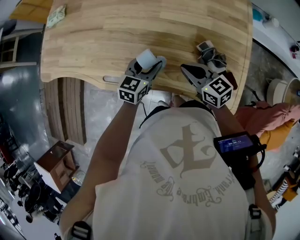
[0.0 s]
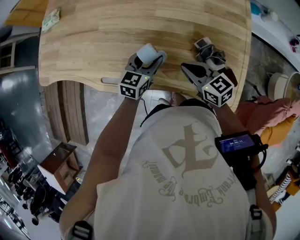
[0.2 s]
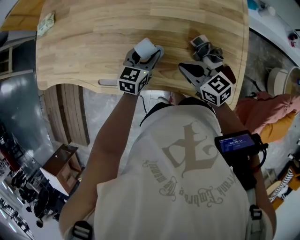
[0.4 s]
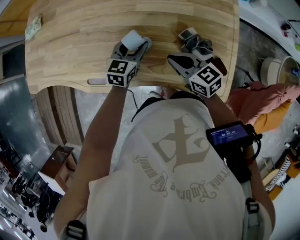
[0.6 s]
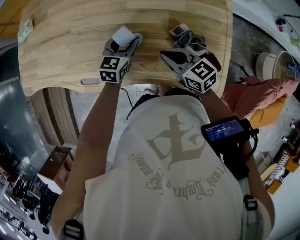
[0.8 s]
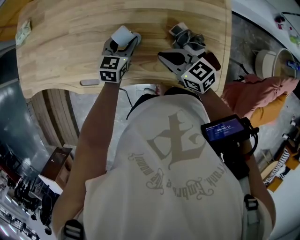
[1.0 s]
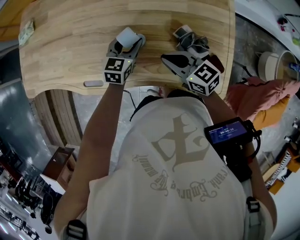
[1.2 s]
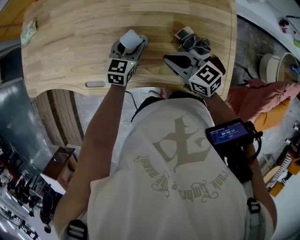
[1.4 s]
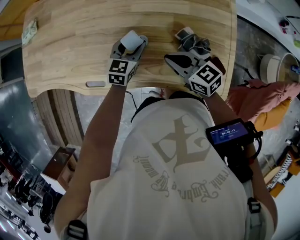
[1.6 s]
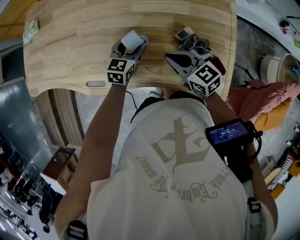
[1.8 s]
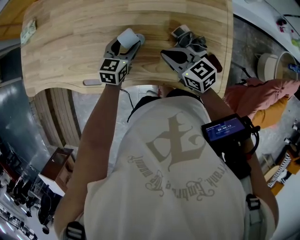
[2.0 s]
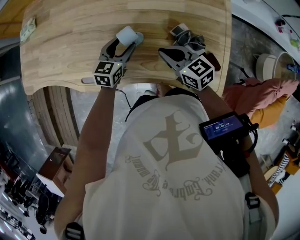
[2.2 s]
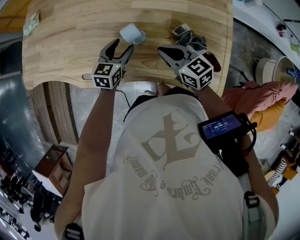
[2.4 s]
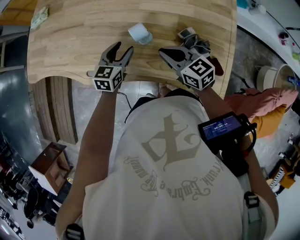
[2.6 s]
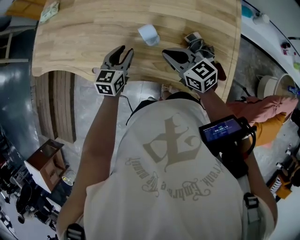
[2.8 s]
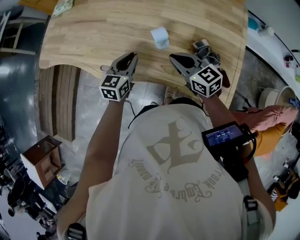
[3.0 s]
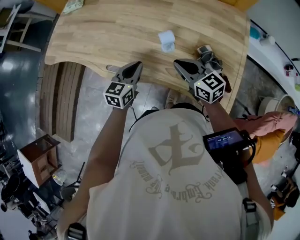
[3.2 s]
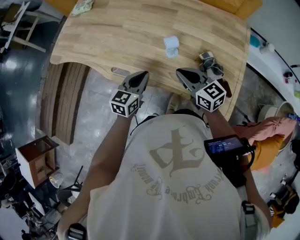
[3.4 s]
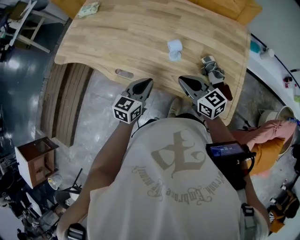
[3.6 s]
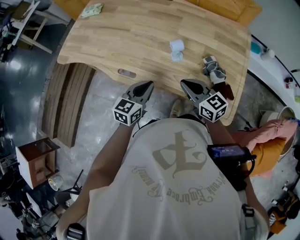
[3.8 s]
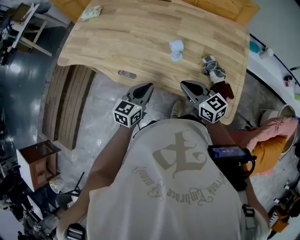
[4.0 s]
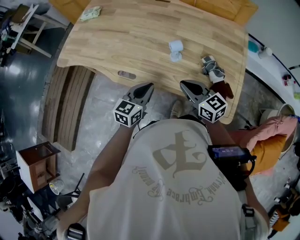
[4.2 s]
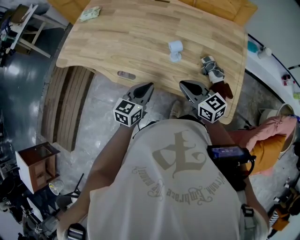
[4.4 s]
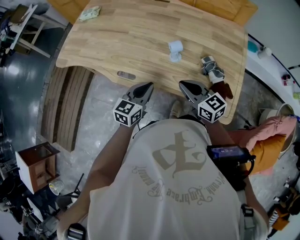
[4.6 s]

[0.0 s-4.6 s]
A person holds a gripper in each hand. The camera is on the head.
0.0 to 1.6 s: The left gripper moves forward, some 5 cm.
1.6 to 3.0 s: The left gripper shifts about 15 cm to the left, backward and upward, and closes its fingers.
3.0 to 4.6 s: The right gripper shifts some 10 cm backward; the left gripper heads backward and upward, covering approximately 15 cm.

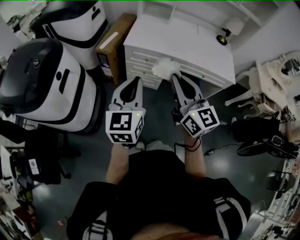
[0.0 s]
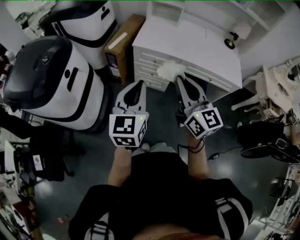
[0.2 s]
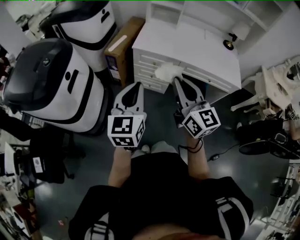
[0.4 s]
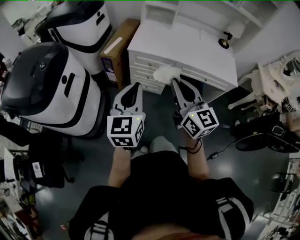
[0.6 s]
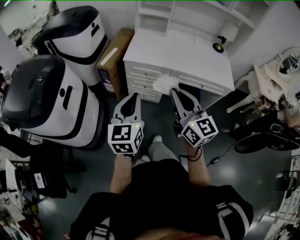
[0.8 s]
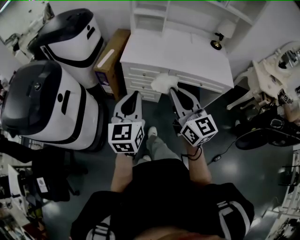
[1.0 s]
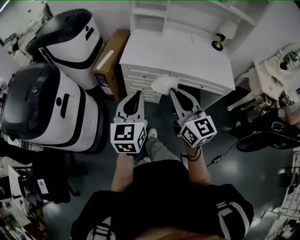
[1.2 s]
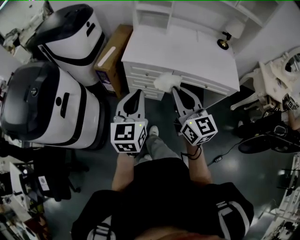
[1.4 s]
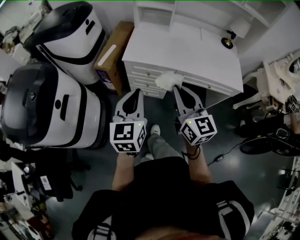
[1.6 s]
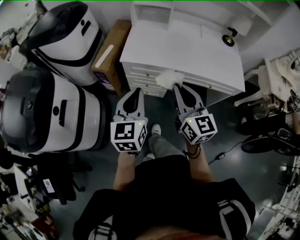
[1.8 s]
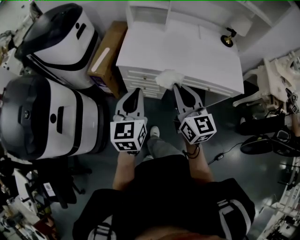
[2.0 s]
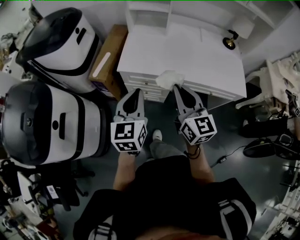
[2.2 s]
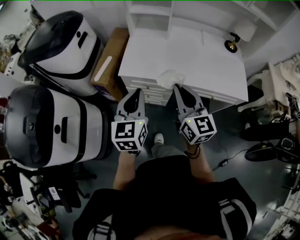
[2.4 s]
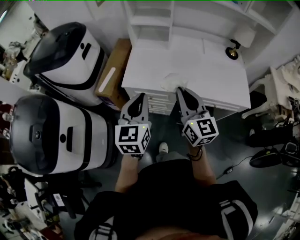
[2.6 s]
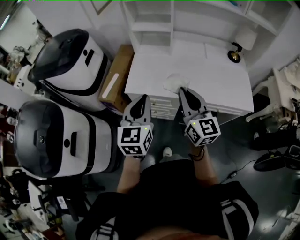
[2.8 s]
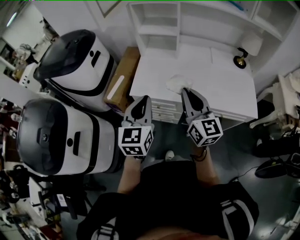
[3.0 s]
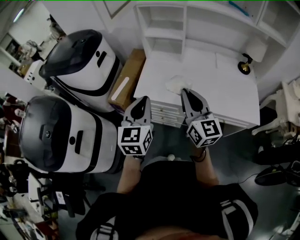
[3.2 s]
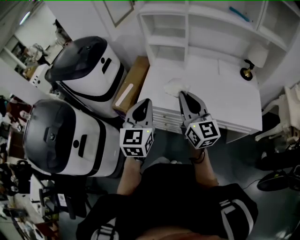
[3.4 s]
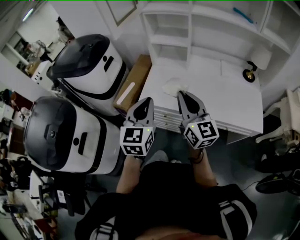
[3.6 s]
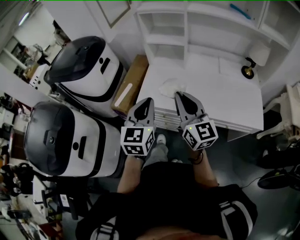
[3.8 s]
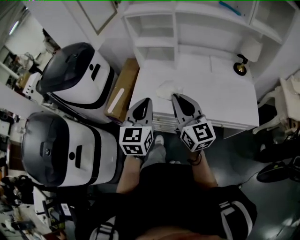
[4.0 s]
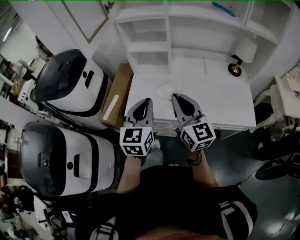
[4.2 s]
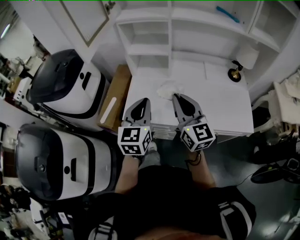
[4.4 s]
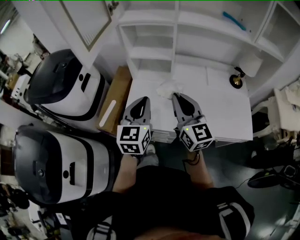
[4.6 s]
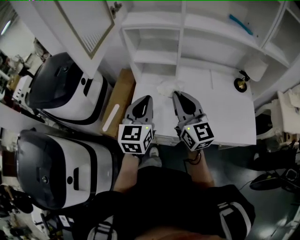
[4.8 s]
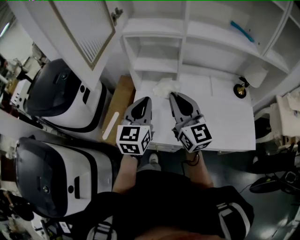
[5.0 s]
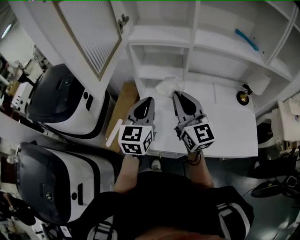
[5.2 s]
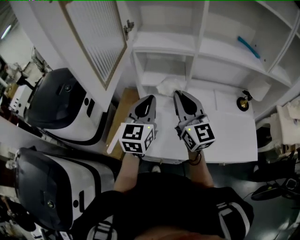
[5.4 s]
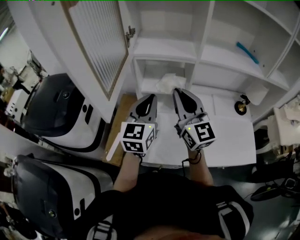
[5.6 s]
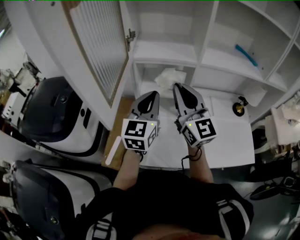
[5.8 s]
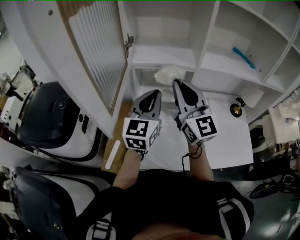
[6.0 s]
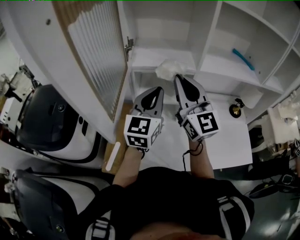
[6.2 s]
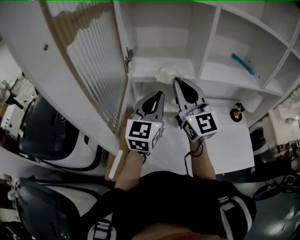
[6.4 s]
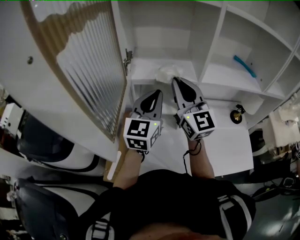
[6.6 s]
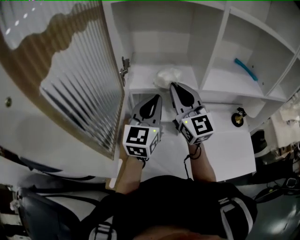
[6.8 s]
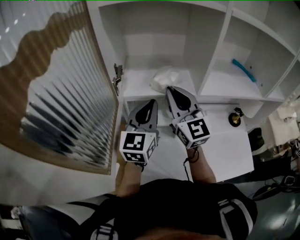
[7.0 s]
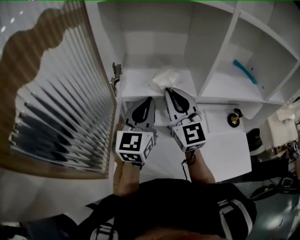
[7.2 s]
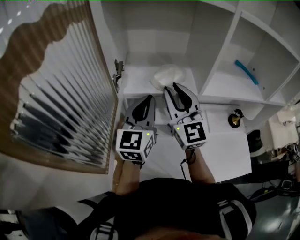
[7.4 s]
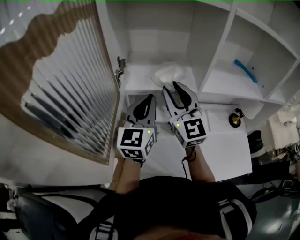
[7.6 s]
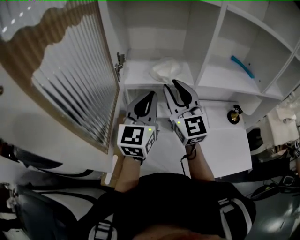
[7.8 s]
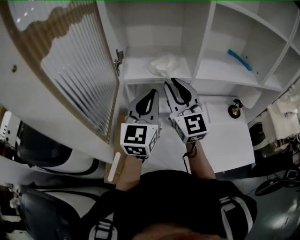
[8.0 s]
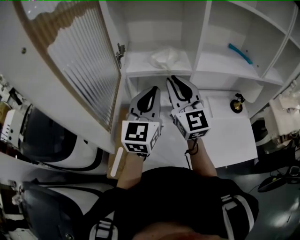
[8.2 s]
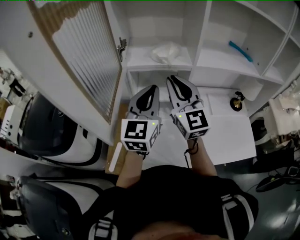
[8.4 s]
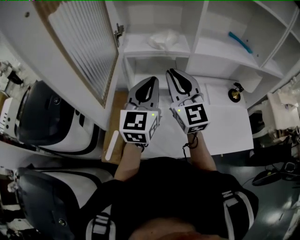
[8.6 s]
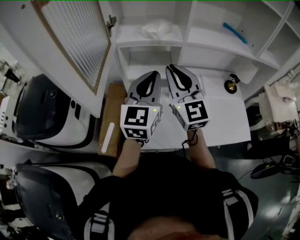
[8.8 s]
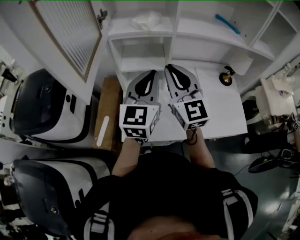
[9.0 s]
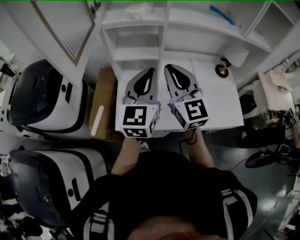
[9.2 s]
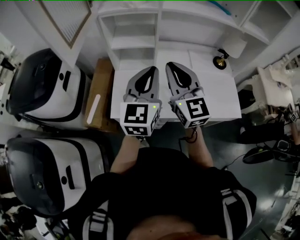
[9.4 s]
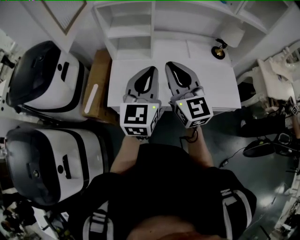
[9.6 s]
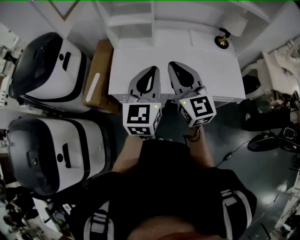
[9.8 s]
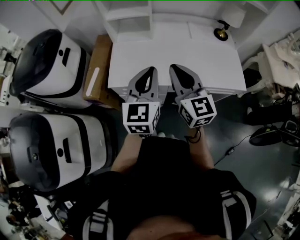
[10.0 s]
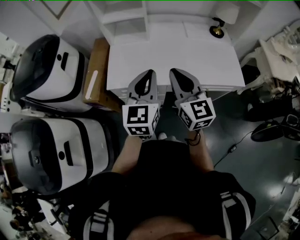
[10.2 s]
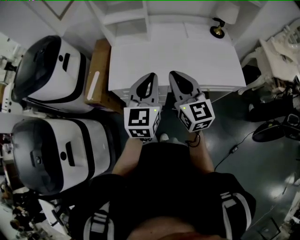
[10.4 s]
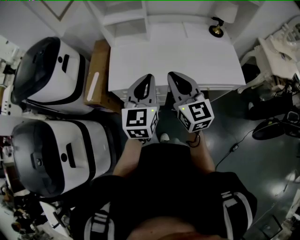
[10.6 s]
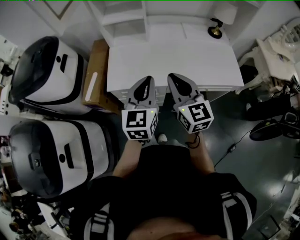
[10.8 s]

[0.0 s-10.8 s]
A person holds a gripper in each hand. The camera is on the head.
0.0 to 1.6 s: The two grippers go roughly 10 cm forward.
1.6 to 3.0 s: The grippers both shift forward by approximately 20 cm.
3.0 to 4.6 s: Both grippers travel together forward, about 15 cm.
4.6 to 6.2 s: The right gripper travels forward, upward and to the left by roughly 30 cm, and changes its angle by about 20 degrees, while the left gripper heads forward and upward, covering about 30 cm.
6.2 to 7.8 s: Both grippers move forward, approximately 5 cm. The right gripper opens.
7.8 to 9.2 s: The two grippers go about 25 cm backward and to the right. The right gripper closes up.
9.2 to 10.8 s: Both grippers move backward and downward, some 25 cm.

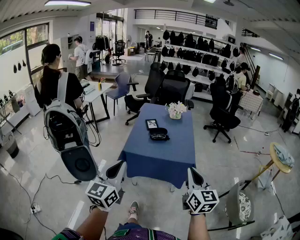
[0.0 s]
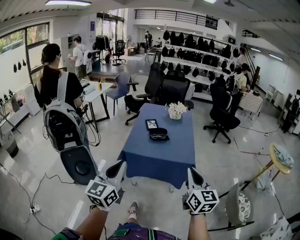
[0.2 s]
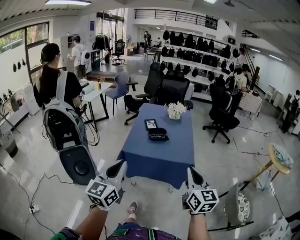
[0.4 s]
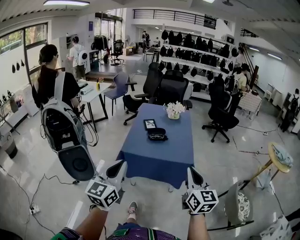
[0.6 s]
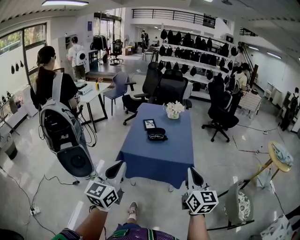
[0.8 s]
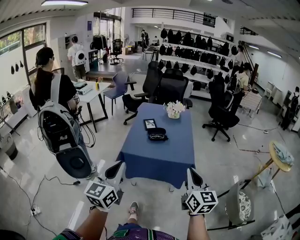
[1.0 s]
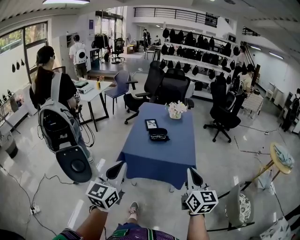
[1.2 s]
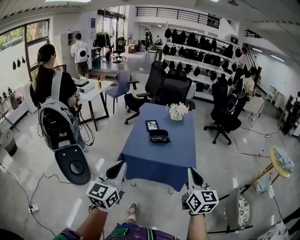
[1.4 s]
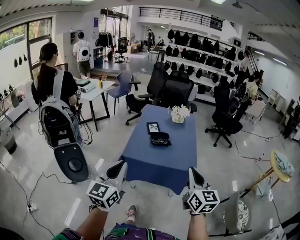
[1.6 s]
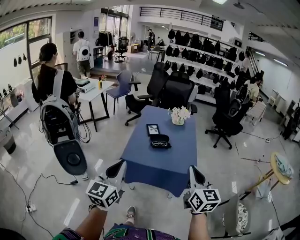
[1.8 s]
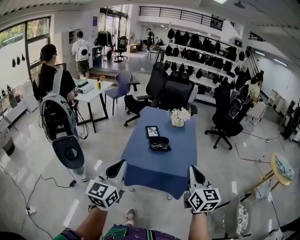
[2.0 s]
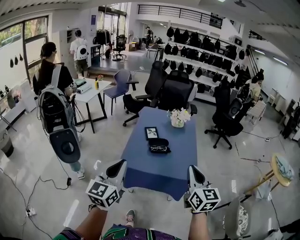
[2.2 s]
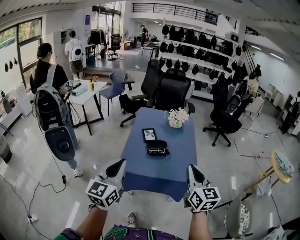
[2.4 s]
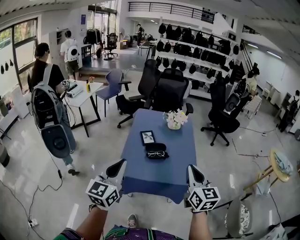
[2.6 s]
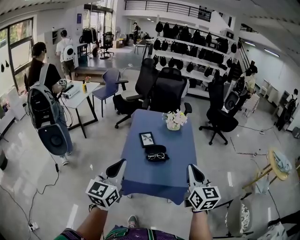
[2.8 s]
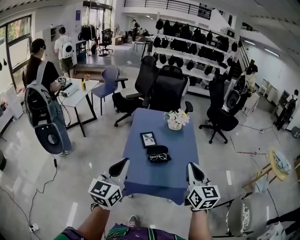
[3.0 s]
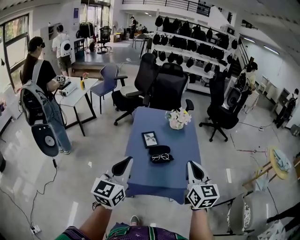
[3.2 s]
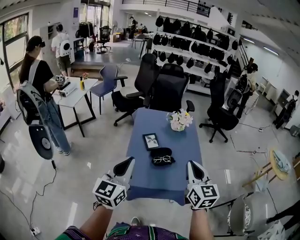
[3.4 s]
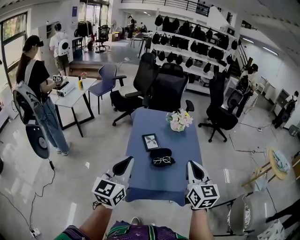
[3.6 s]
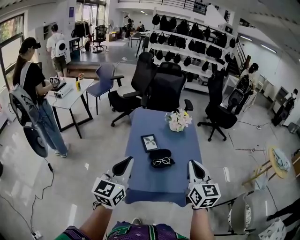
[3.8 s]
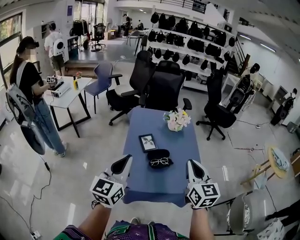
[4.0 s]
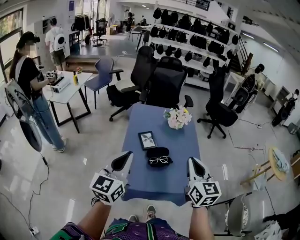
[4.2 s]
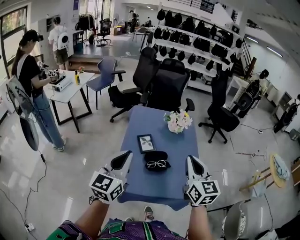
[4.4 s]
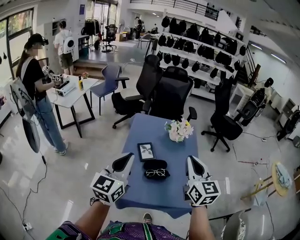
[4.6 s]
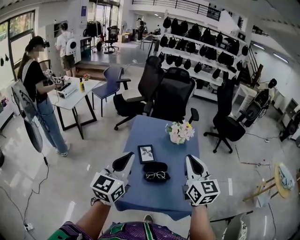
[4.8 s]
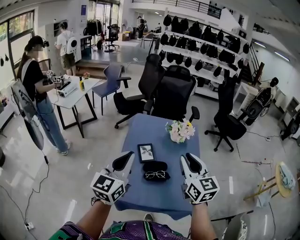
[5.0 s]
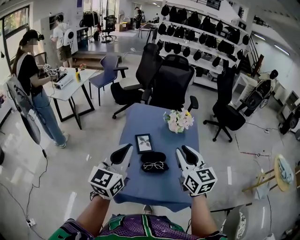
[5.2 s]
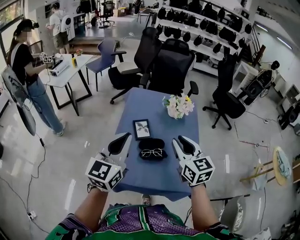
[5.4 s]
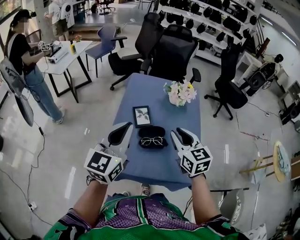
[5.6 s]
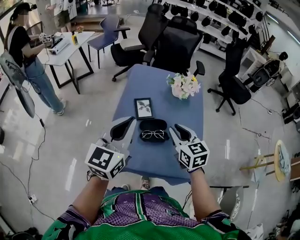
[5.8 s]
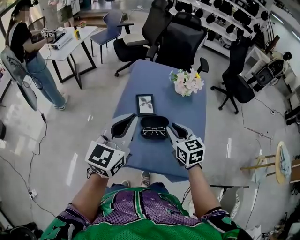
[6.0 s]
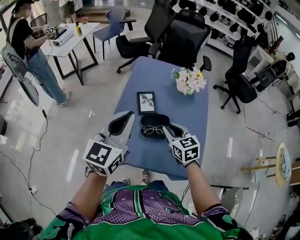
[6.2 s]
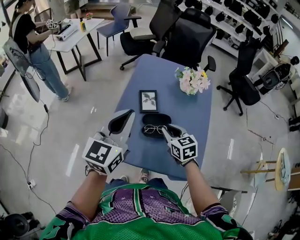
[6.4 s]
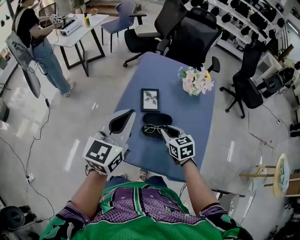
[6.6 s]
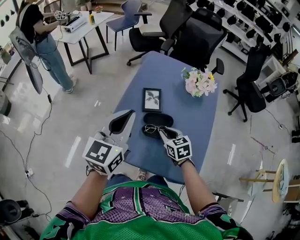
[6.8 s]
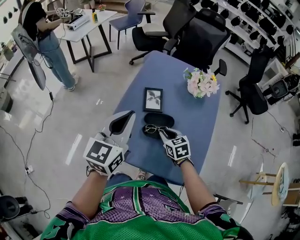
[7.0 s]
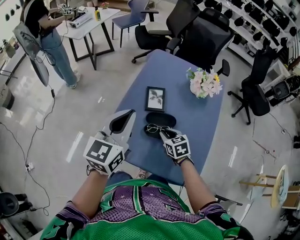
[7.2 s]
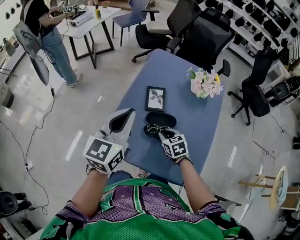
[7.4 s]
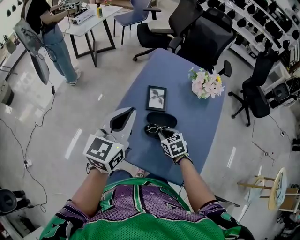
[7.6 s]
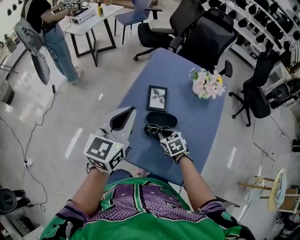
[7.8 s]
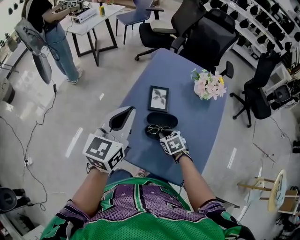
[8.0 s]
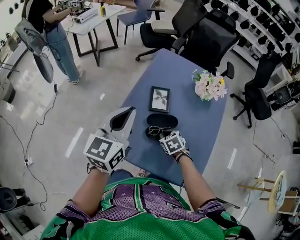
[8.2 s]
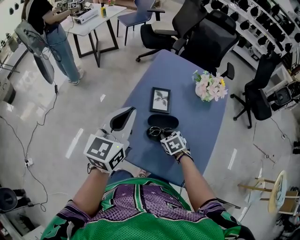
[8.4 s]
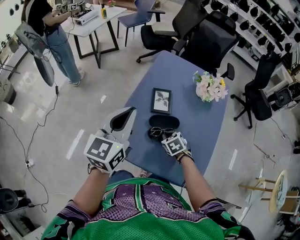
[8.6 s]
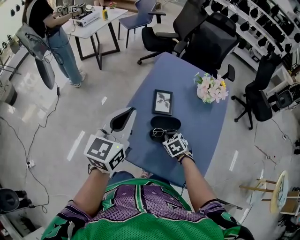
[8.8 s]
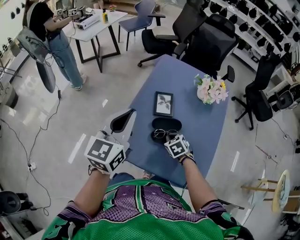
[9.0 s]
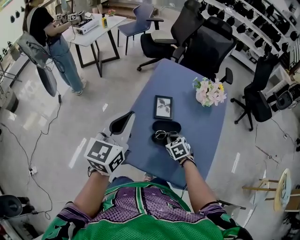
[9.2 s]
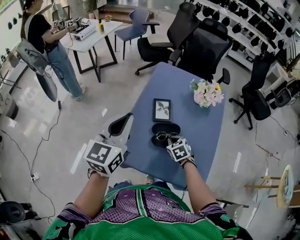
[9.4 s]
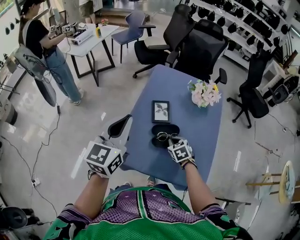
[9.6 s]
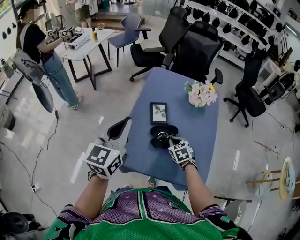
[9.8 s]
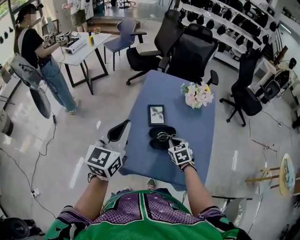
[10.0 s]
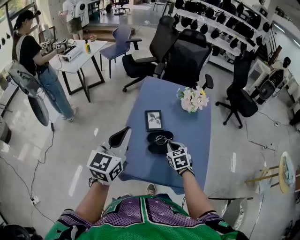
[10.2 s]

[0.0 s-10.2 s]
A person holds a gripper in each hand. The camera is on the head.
0.0 to 1.4 s: The grippers move only a little.
1.4 to 3.0 s: Both grippers move forward, about 25 cm.
3.0 to 4.4 s: Both grippers move forward, about 15 cm.
4.4 to 5.8 s: The left gripper travels to the right and forward by approximately 10 cm, while the right gripper shifts about 20 cm downward and forward, and rotates approximately 30 degrees.
5.8 to 7.2 s: The right gripper shifts approximately 20 cm downward, and rotates roughly 30 degrees; the left gripper heads downward, covering approximately 5 cm.
7.2 to 8.8 s: The right gripper rotates about 20 degrees.
8.8 to 10.2 s: The right gripper heads upward, covering roughly 10 cm, and rotates some 30 degrees; the left gripper ends up roughly 5 cm from where it was.
